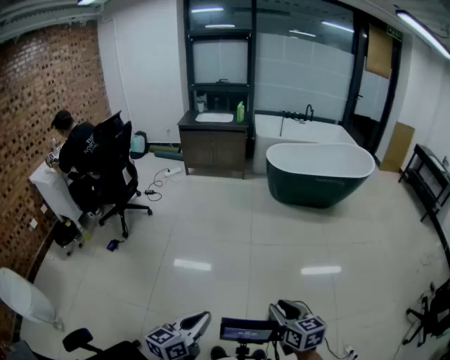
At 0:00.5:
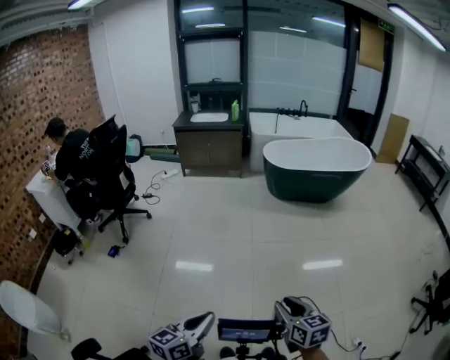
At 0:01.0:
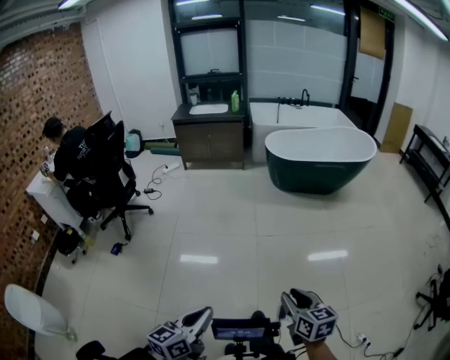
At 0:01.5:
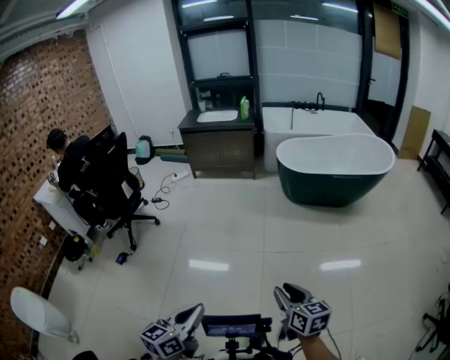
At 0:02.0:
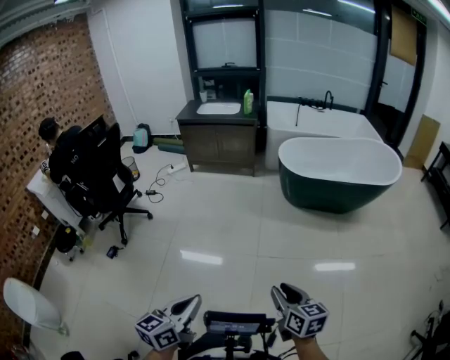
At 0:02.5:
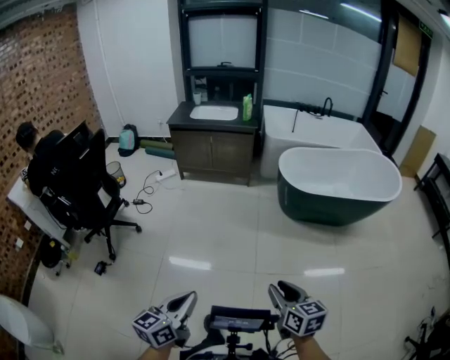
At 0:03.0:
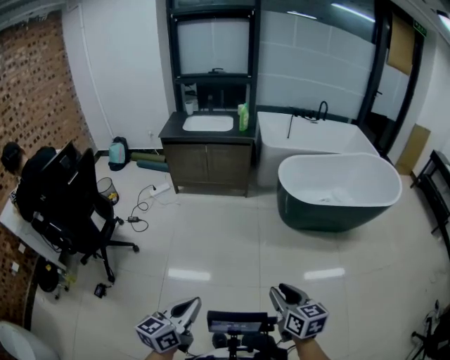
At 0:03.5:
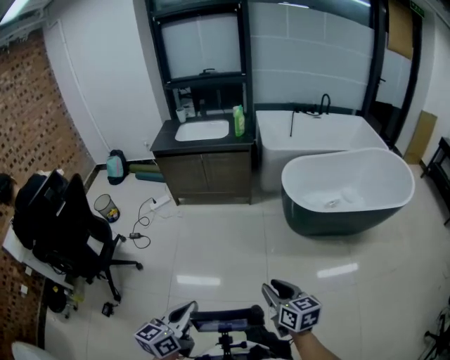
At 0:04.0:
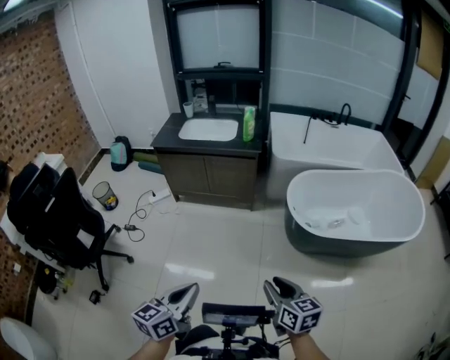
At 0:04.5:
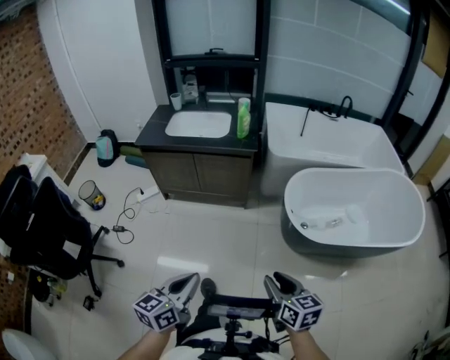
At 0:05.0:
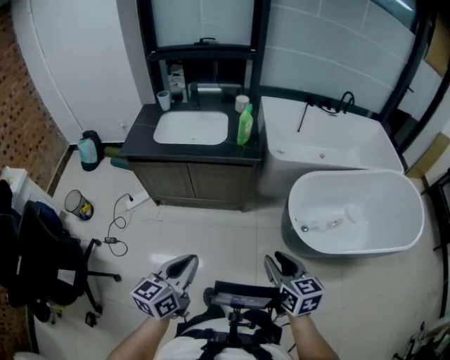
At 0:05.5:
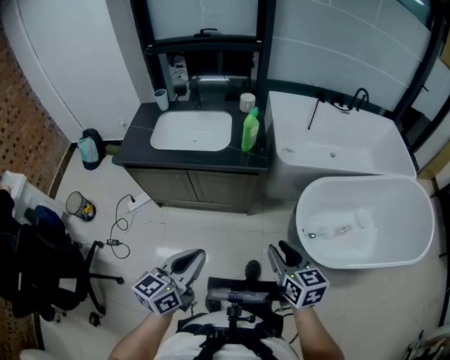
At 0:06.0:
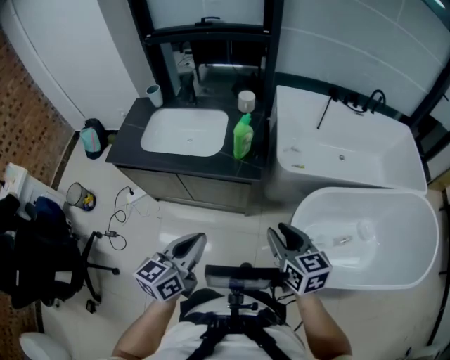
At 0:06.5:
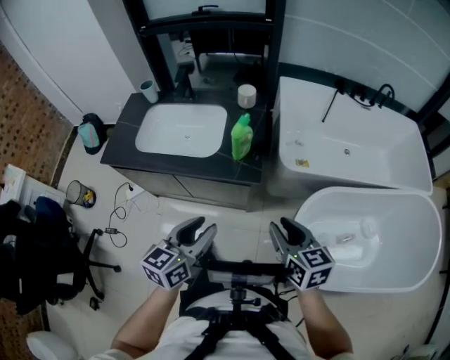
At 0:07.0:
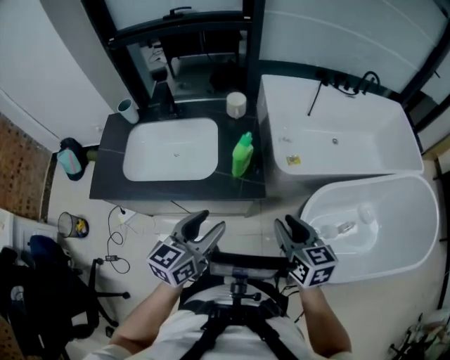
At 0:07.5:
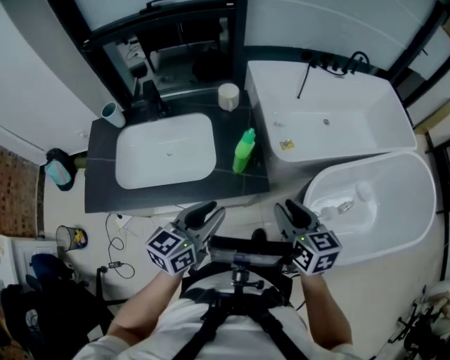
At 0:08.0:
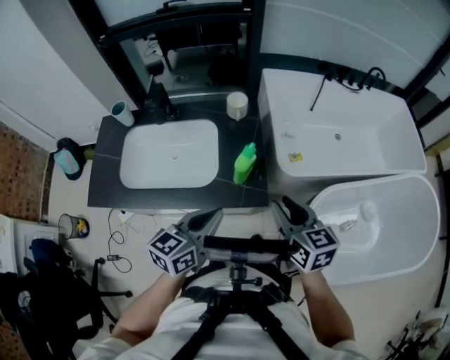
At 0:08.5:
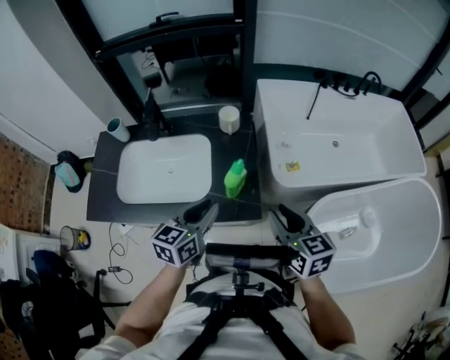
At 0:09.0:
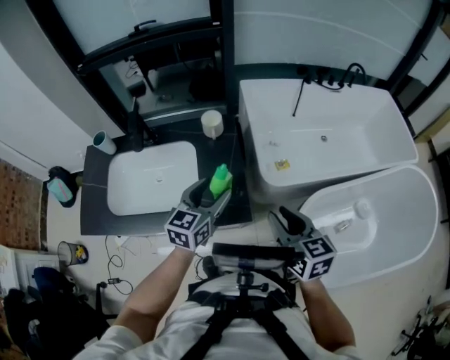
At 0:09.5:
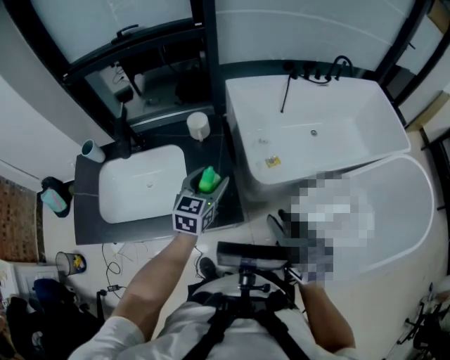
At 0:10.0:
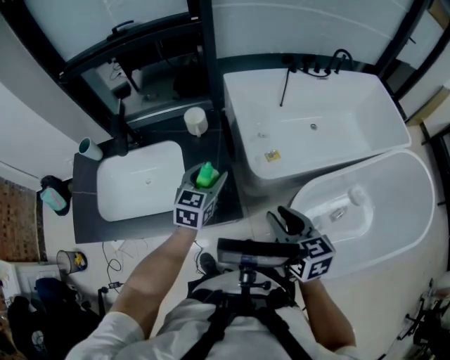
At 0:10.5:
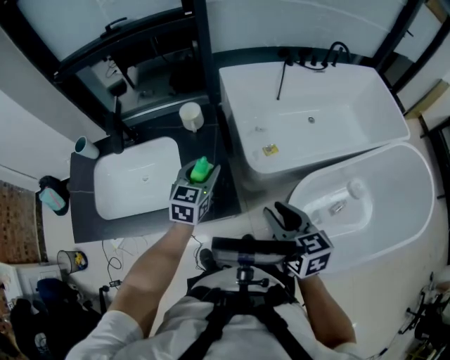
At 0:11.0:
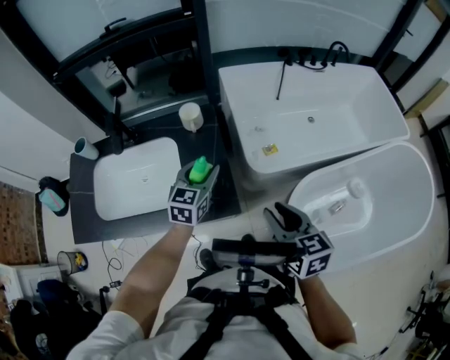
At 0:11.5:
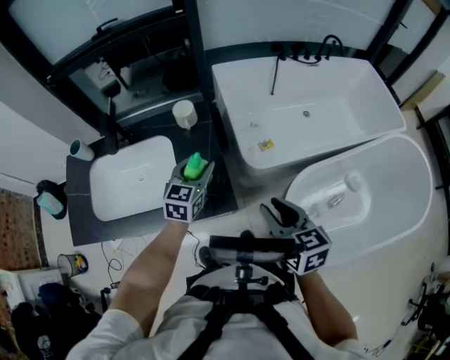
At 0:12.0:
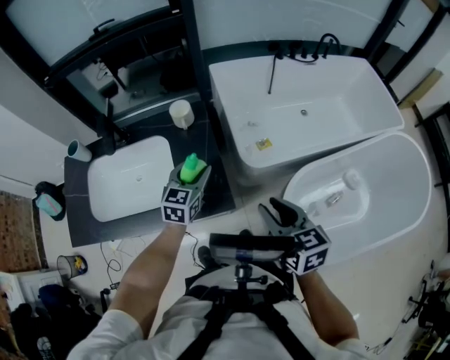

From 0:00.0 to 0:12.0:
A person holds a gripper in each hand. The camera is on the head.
From 0:00.0 to 0:02.0: The two grippers go approximately 30 cm forward.
From 0:02.0 to 0:04.0: The pair of grippers is taken forward, about 60 cm.
From 0:04.0 to 0:06.0: The two grippers travel together, forward, about 60 cm.
From 0:06.0 to 0:08.0: The two grippers go some 20 cm forward. The left gripper opens and closes again.
From 0:08.0 to 0:10.0: The left gripper shifts about 20 cm forward, swivels about 30 degrees, and opens up. The right gripper moves to the right, approximately 10 cm.
From 0:10.0 to 0:12.0: There are only small adjustments of the grippers.

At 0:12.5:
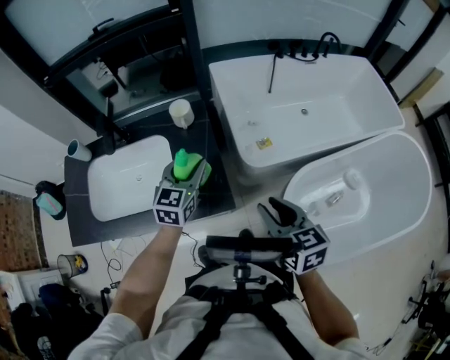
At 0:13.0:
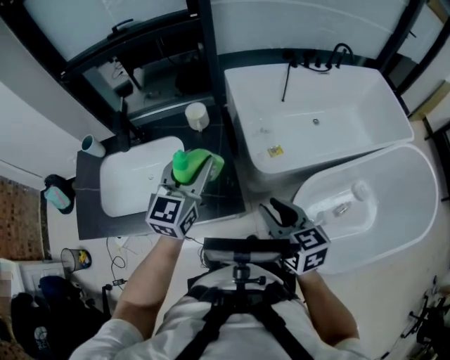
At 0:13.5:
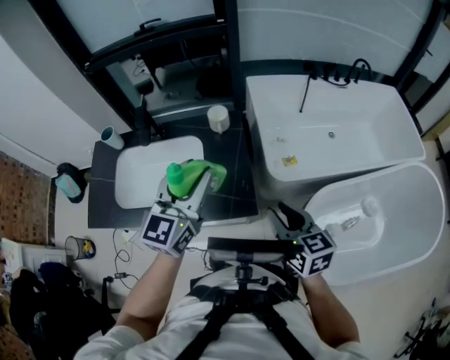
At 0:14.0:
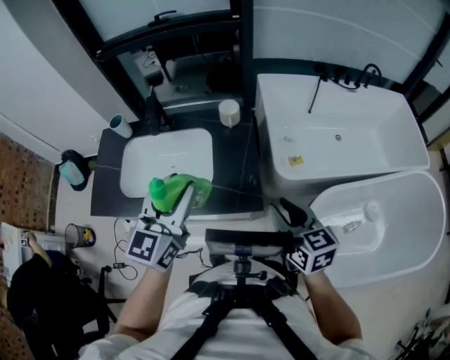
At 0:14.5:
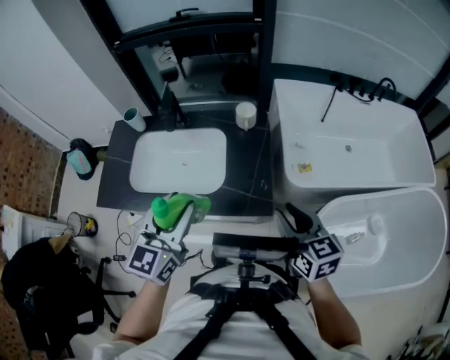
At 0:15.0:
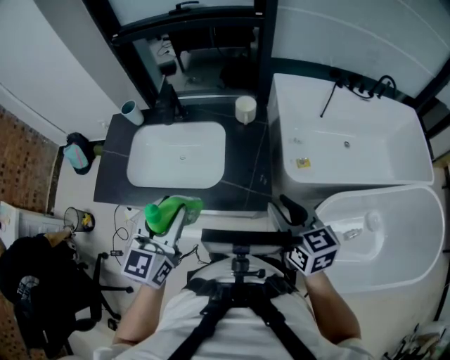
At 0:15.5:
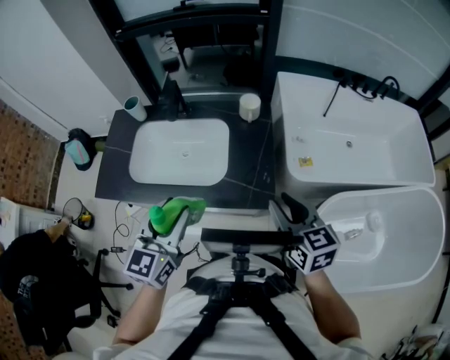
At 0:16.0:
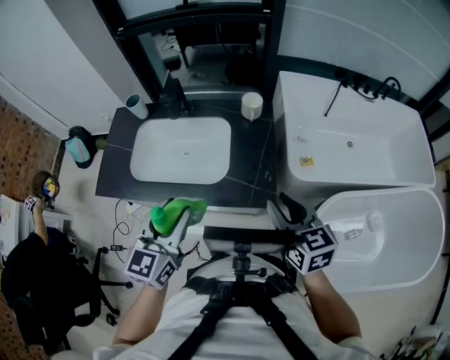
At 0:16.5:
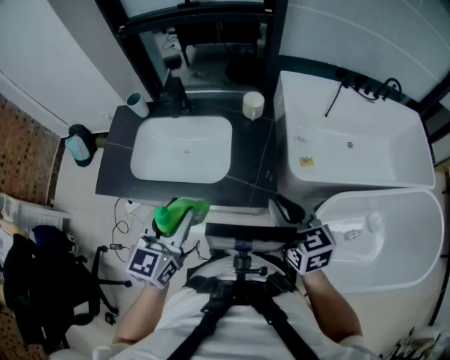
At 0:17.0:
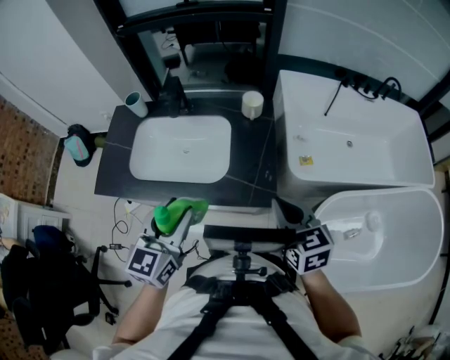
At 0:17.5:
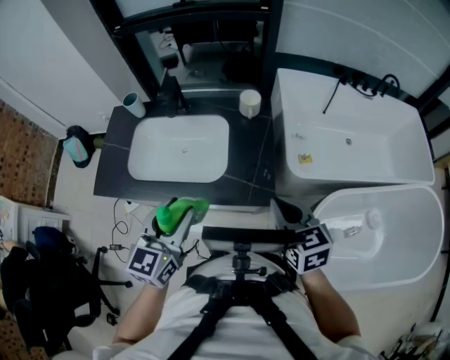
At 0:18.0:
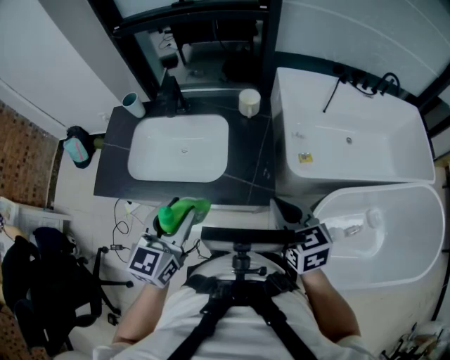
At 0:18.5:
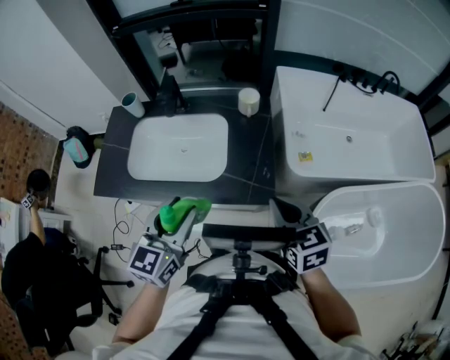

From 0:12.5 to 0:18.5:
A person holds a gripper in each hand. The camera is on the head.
From 0:12.5 to 0:14.5: The left gripper heads backward, to the left and upward, covering approximately 25 cm; the right gripper heads to the left, covering some 10 cm.
From 0:14.5 to 0:16.5: The left gripper ends up roughly 5 cm from where it was.
From 0:16.5 to 0:18.5: Neither gripper changes place.

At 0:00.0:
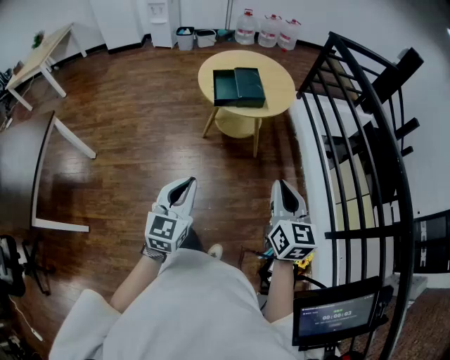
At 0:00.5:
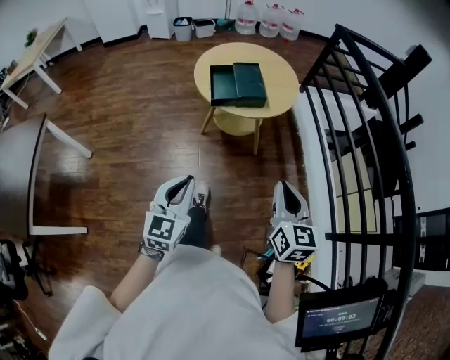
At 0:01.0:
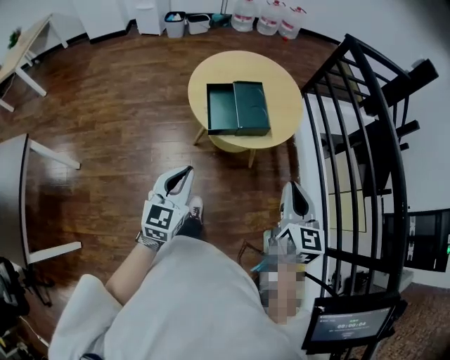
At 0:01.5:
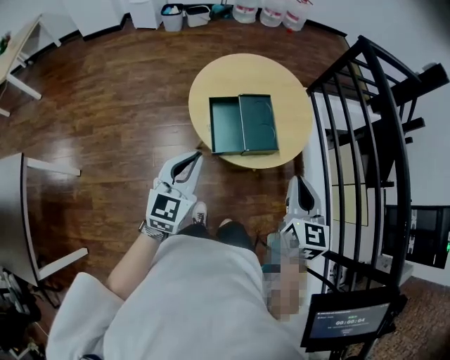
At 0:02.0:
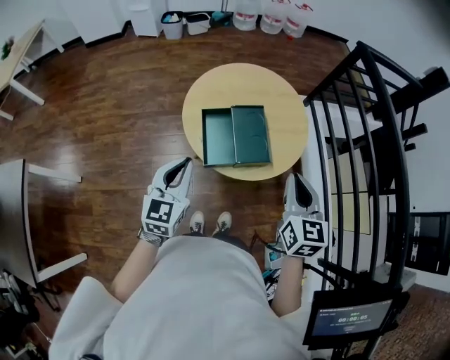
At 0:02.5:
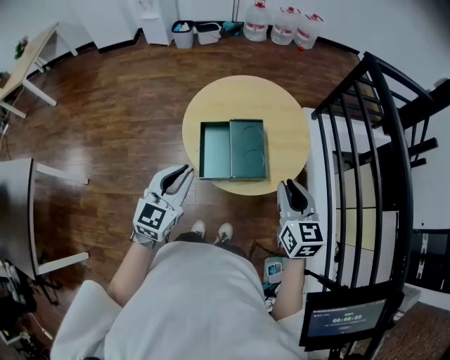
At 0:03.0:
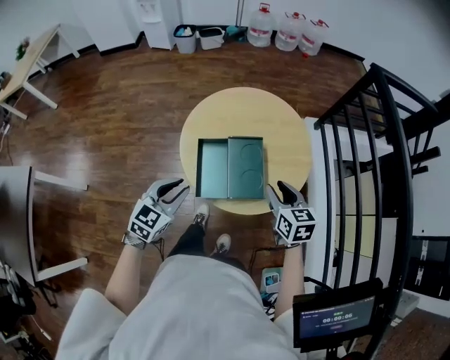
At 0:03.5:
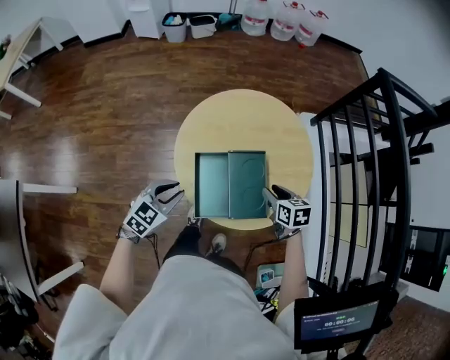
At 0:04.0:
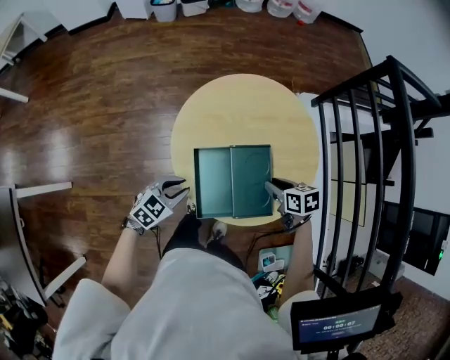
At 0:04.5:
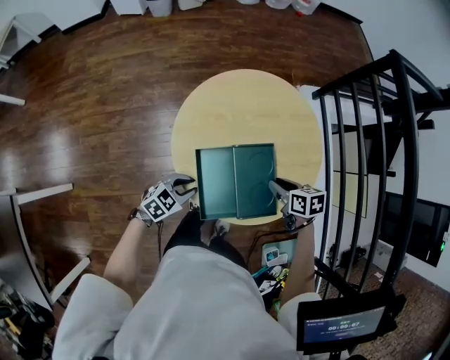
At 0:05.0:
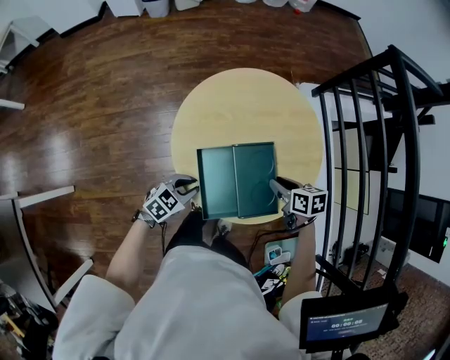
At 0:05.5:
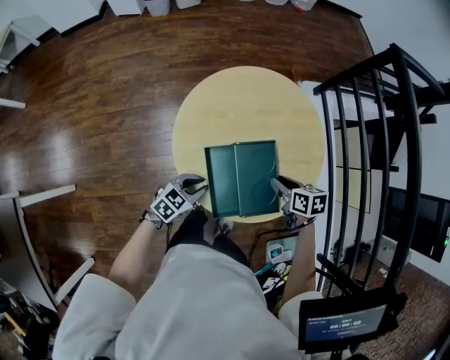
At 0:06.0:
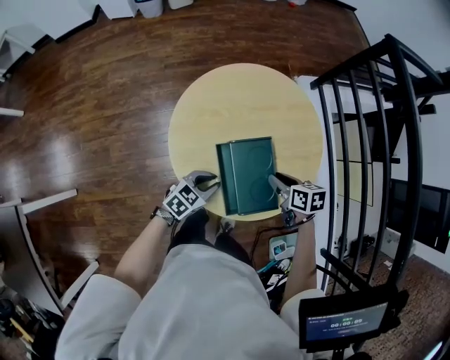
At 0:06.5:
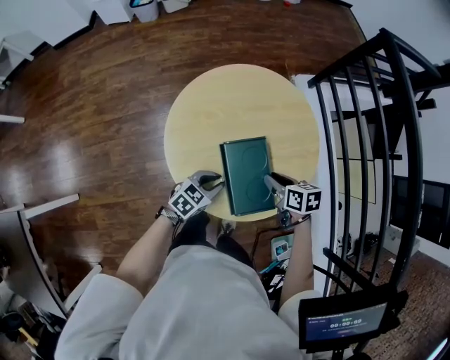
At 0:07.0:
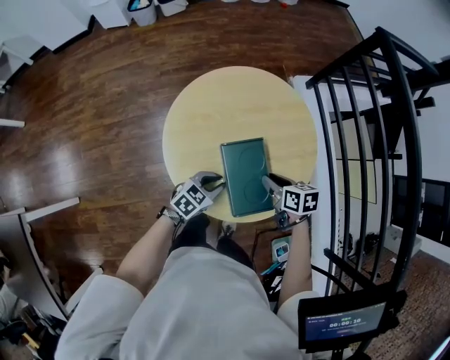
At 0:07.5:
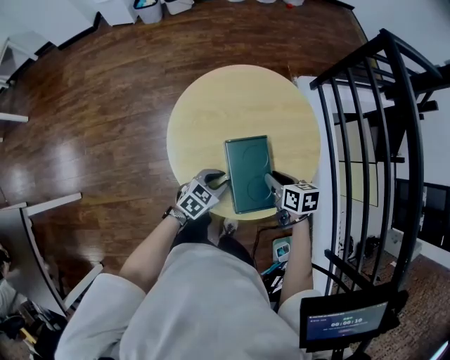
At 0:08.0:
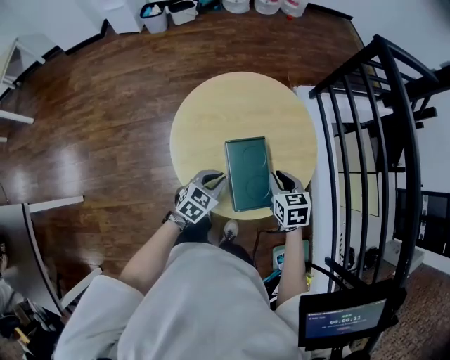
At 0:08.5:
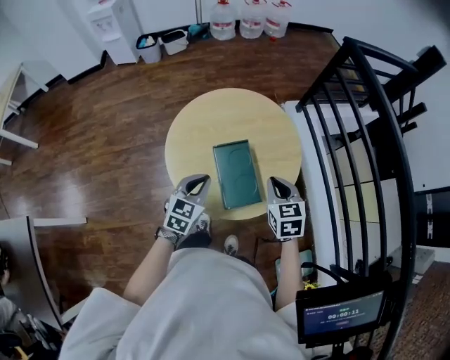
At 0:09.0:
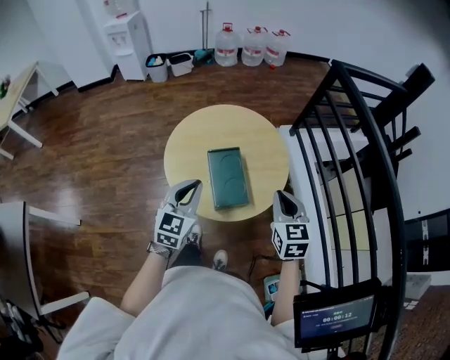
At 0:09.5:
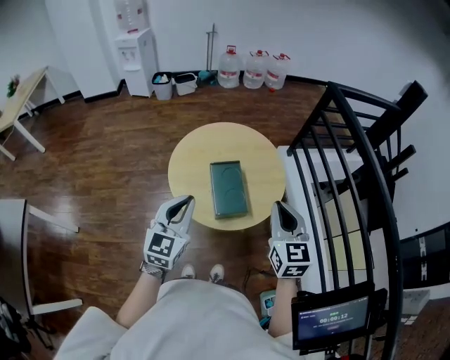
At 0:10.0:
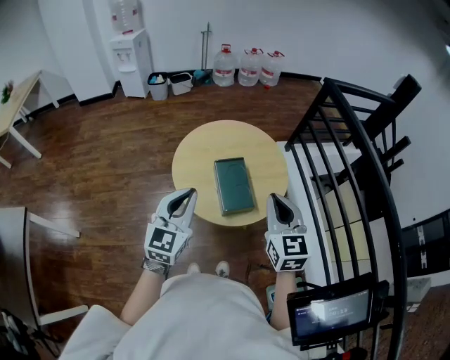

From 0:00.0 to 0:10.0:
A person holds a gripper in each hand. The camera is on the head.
From 0:00.0 to 0:02.0: The two grippers go approximately 35 cm forward.
From 0:02.0 to 0:04.0: The left gripper goes some 20 cm downward, changes its angle by roughly 40 degrees, and opens up. Meanwhile the right gripper heads downward and forward, covering roughly 30 cm, points its fingers roughly 30 degrees further downward, and opens up.
From 0:04.0 to 0:06.0: The left gripper is displaced to the right by some 10 cm.
From 0:06.0 to 0:08.0: The right gripper turns by some 30 degrees.
From 0:08.0 to 0:10.0: The left gripper moves upward, about 30 cm, and tilts its fingers approximately 30 degrees upward. The right gripper shifts about 30 cm upward and backward, and tips its fingers upward by roughly 30 degrees.
